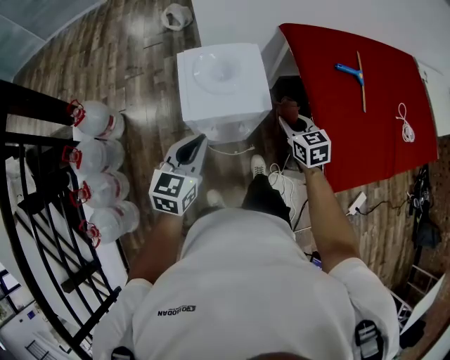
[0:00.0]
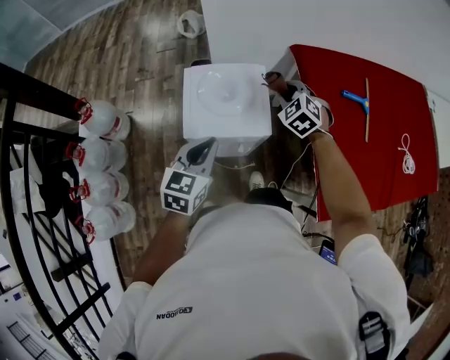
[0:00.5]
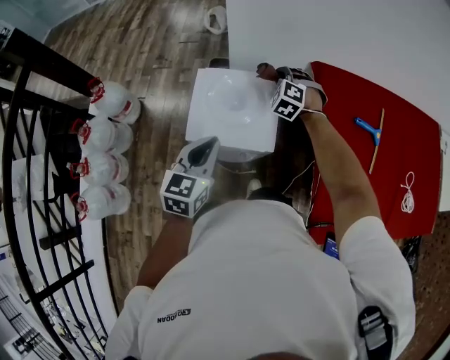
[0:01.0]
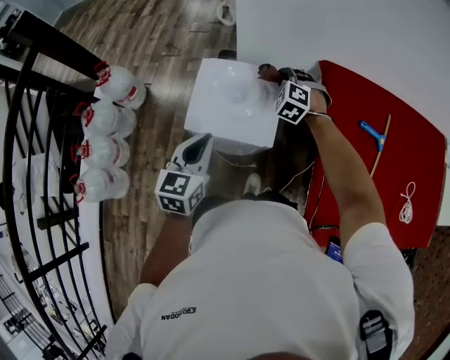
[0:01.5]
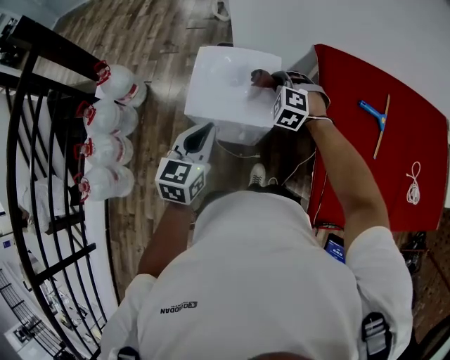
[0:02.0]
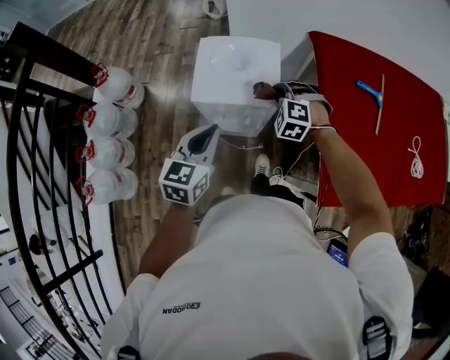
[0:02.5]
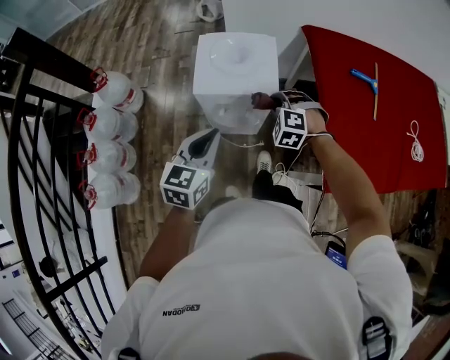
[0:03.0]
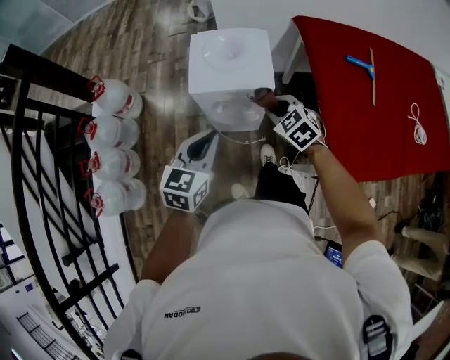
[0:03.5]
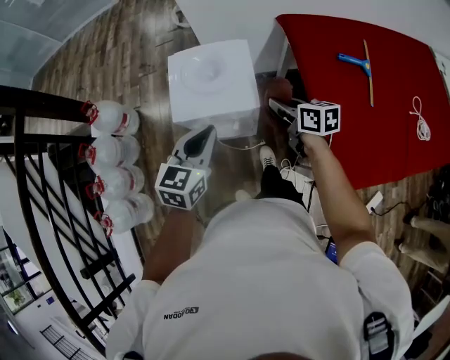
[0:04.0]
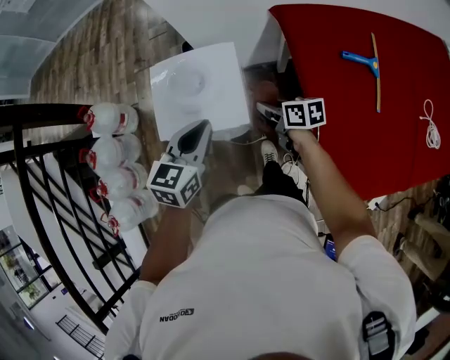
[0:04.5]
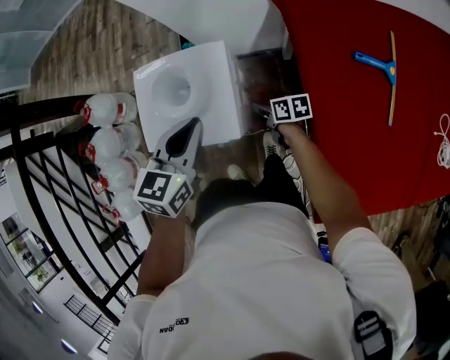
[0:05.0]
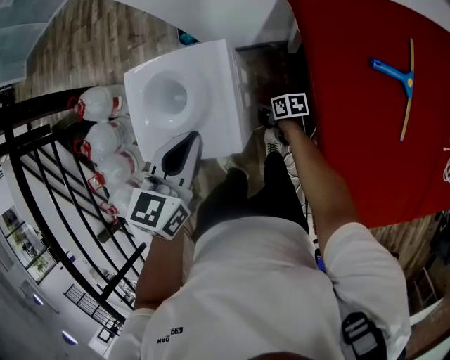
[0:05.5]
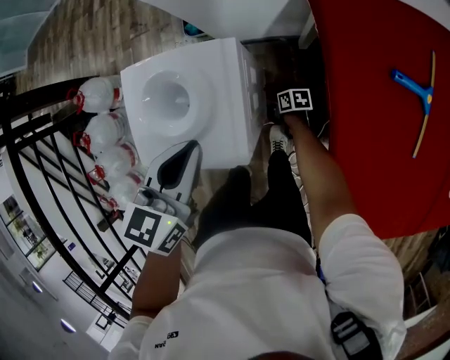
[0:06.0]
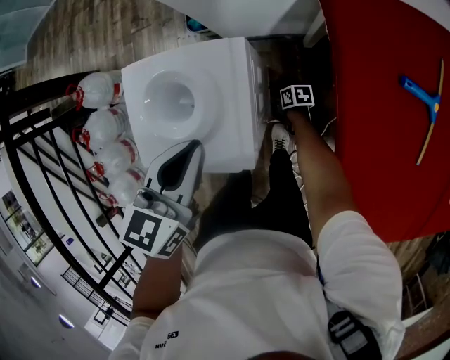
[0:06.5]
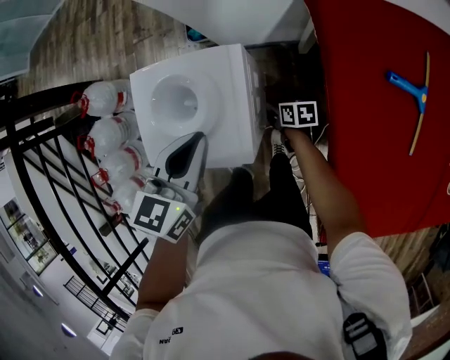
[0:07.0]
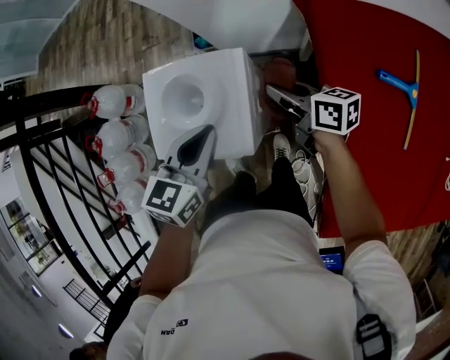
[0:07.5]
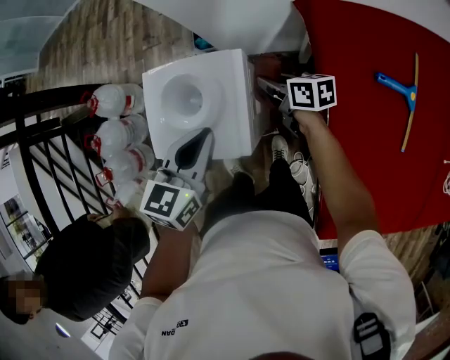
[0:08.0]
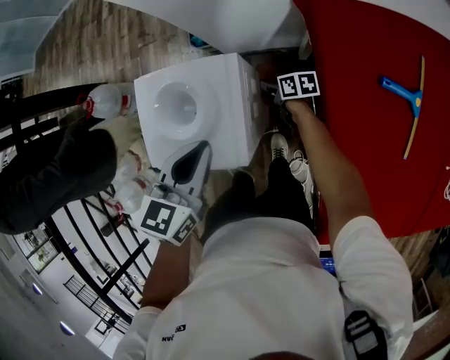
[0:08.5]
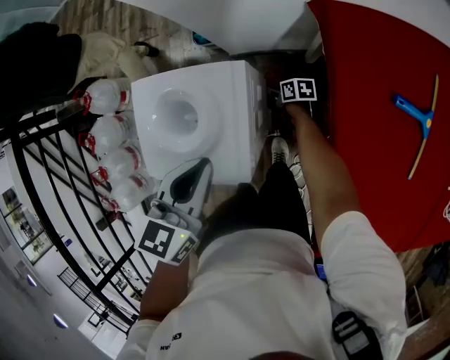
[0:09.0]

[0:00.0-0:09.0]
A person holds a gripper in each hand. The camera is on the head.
0:00.0 to 0:02.0: The left gripper ends up approximately 5 cm from where it was. Meanwhile the right gripper moves forward and to the left, roughly 15 cm, and twists roughly 70 degrees counterclockwise, seen from behind.
0:02.0 to 0:04.5: The left gripper travels to the right by approximately 5 cm, and travels backward and back again, roughly 10 cm each way; the right gripper travels downward and to the right by some 10 cm, reaches approximately 20 cm backward, then returns, and twists about 100 degrees clockwise, seen from behind.
0:04.5 to 0:07.0: The left gripper is displaced forward by roughly 5 cm; the right gripper travels downward by approximately 25 cm.
0:07.0 to 0:09.0: The right gripper heads forward, covering some 10 cm, and goes upward and returns, approximately 25 cm each way.

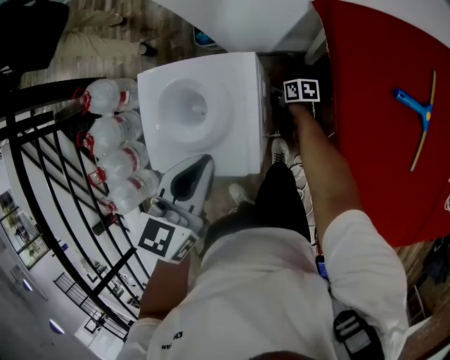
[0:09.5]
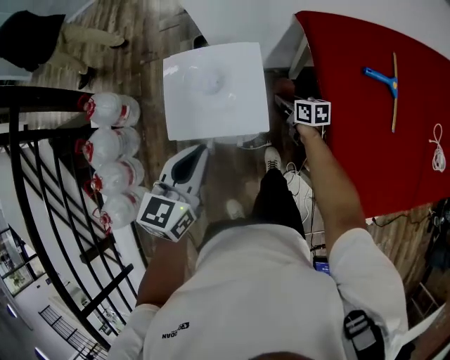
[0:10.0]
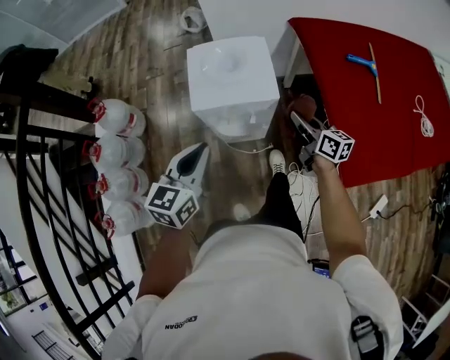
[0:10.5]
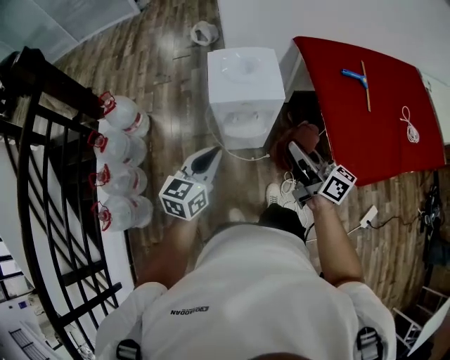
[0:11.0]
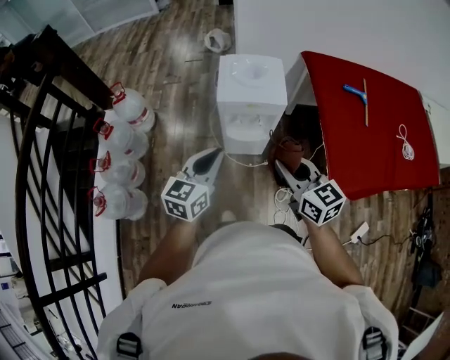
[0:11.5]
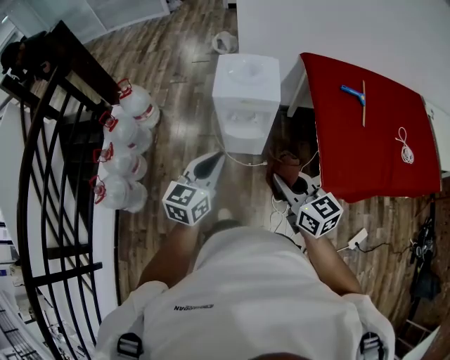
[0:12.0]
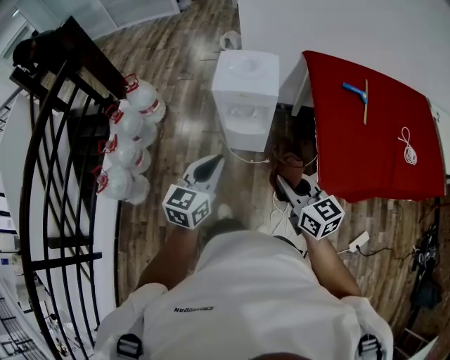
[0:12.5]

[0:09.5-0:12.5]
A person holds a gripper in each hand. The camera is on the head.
0:09.5 to 0:11.0: The left gripper travels backward and to the left by approximately 30 cm, while the right gripper shifts some 60 cm upward and backward, and tilts its fingers about 50 degrees upward.
0:11.0 to 0:12.5: The left gripper moves backward and to the right, roughly 15 cm; the right gripper is displaced backward by about 15 cm, and rotates roughly 30 degrees.

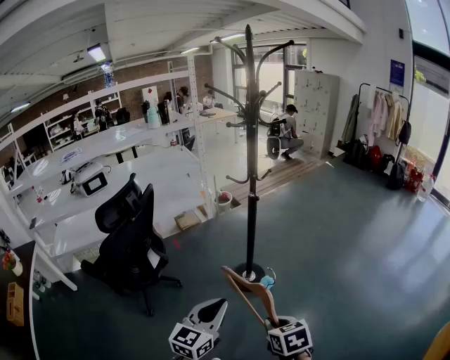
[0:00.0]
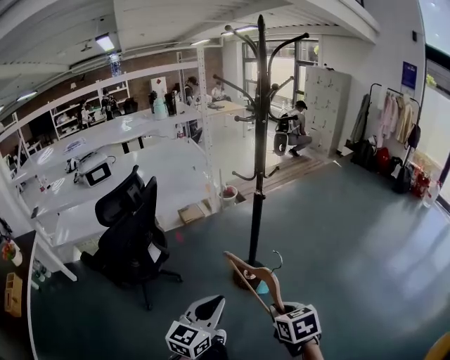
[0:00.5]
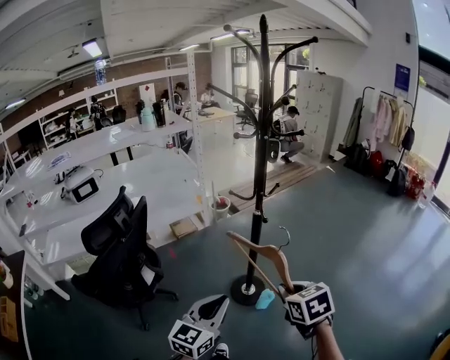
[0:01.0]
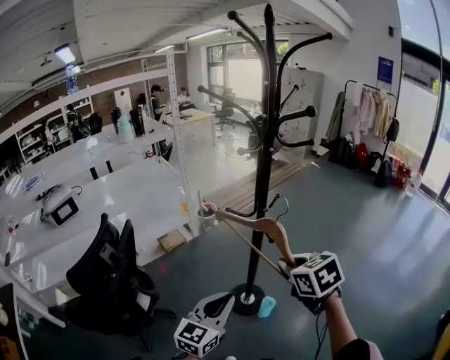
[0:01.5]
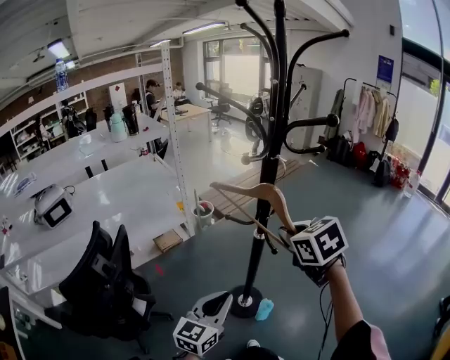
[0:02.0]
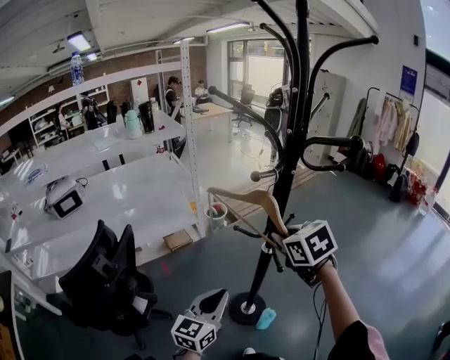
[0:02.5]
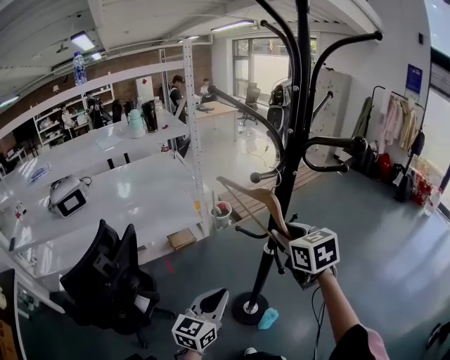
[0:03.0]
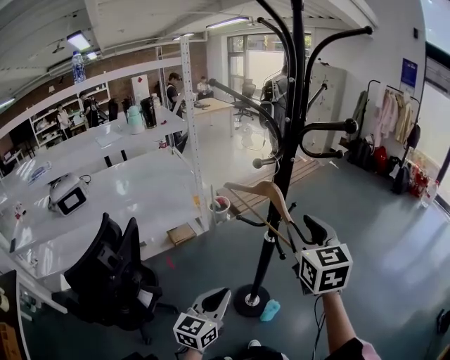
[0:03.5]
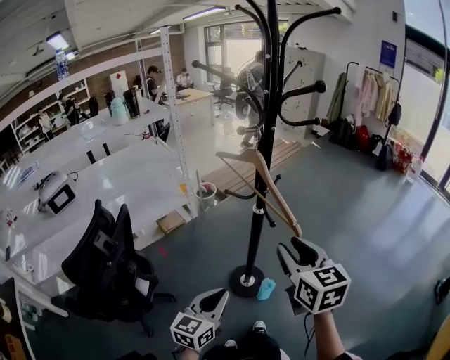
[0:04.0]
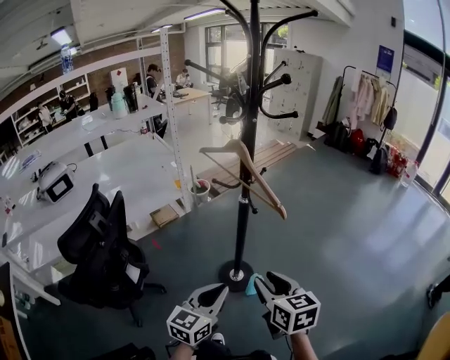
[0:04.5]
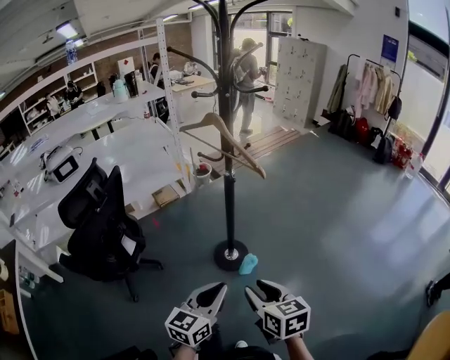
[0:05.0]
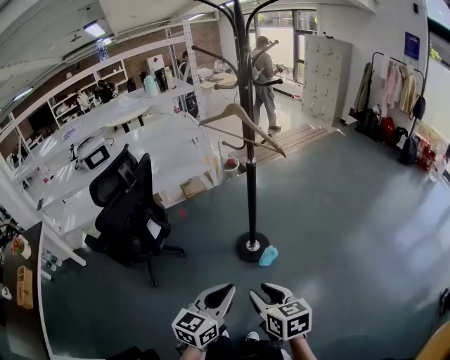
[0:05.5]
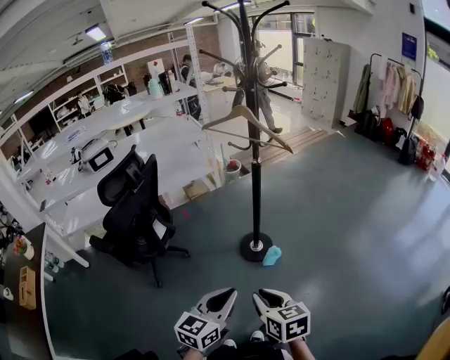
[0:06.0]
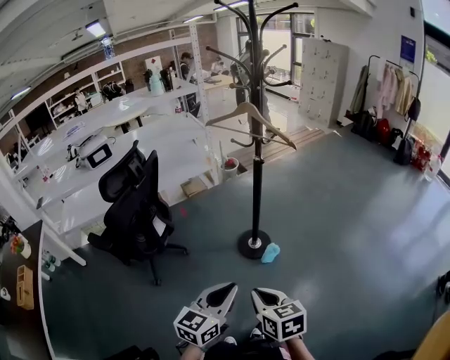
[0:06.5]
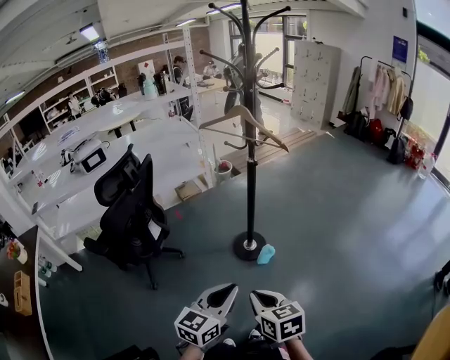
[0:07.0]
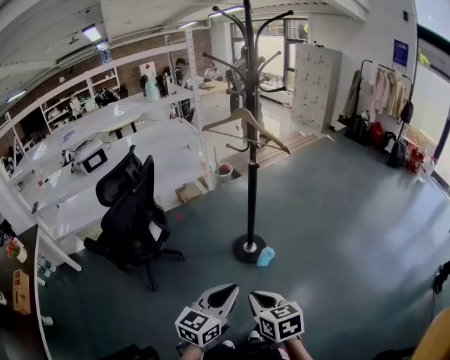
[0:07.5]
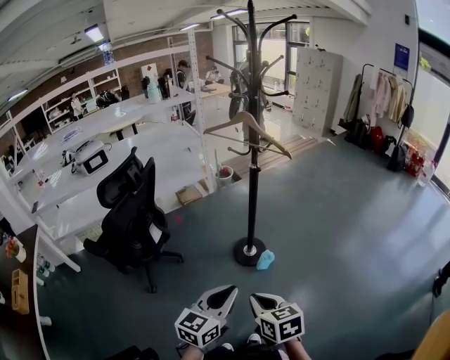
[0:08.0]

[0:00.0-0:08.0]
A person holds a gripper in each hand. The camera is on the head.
0:00.0 to 0:02.0: The left gripper moves forward, about 35 cm. Meanwhile the right gripper goes about 60 cm forward and upward.
0:02.0 to 0:04.0: The right gripper travels backward by approximately 10 cm, swivels about 30 degrees, and opens up, while the left gripper travels backward by roughly 5 cm.
0:04.0 to 0:06.0: The right gripper goes roughly 40 cm backward and downward, and changes its angle by about 30 degrees. Meanwhile the left gripper moves backward and to the right, about 35 cm.
0:06.0 to 0:08.0: The grippers stay close to where they were, moving slightly.

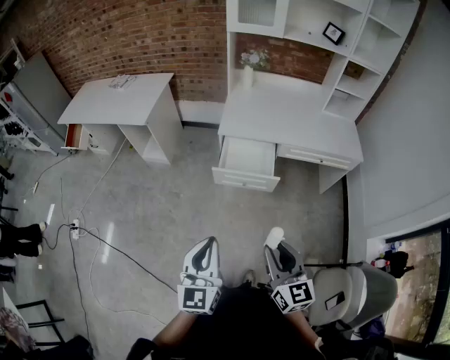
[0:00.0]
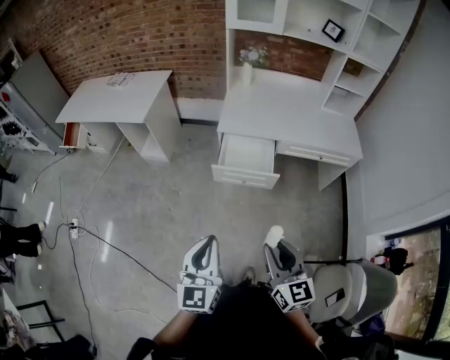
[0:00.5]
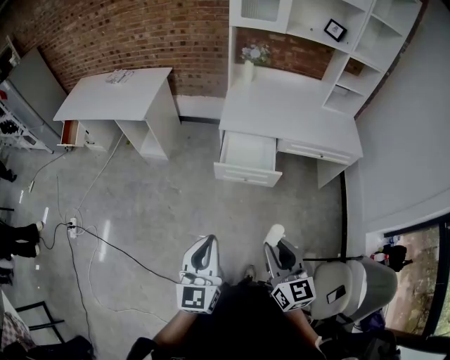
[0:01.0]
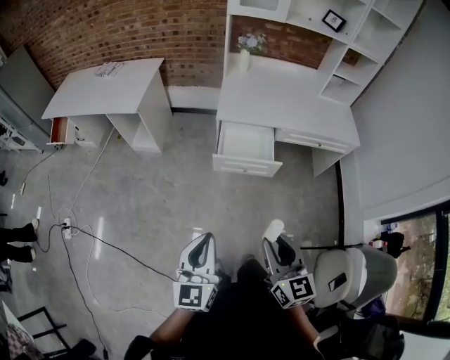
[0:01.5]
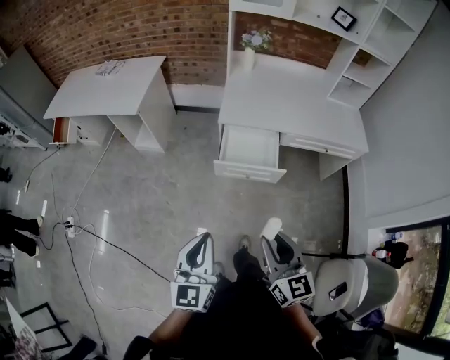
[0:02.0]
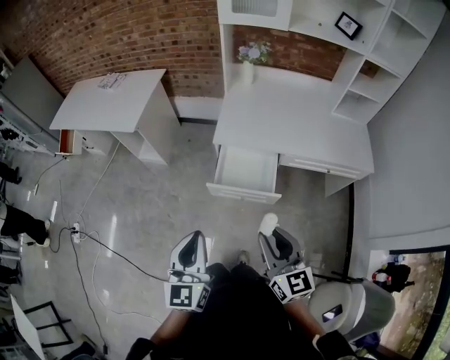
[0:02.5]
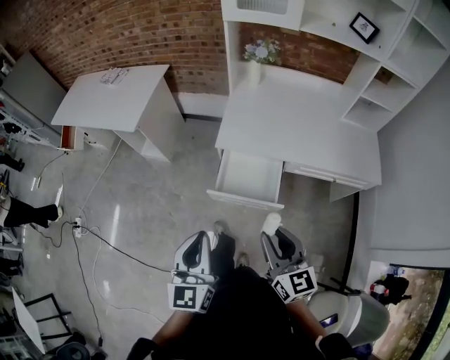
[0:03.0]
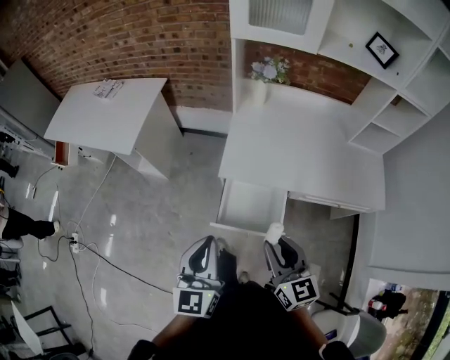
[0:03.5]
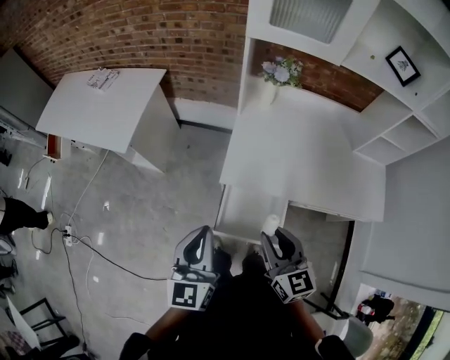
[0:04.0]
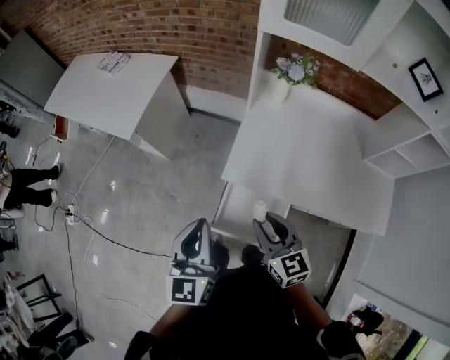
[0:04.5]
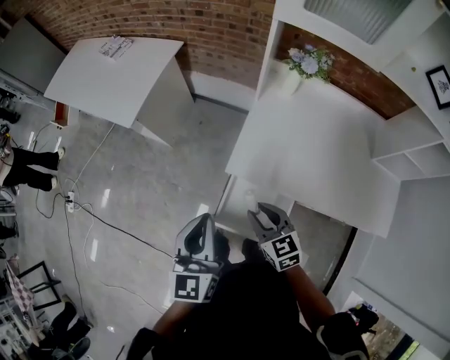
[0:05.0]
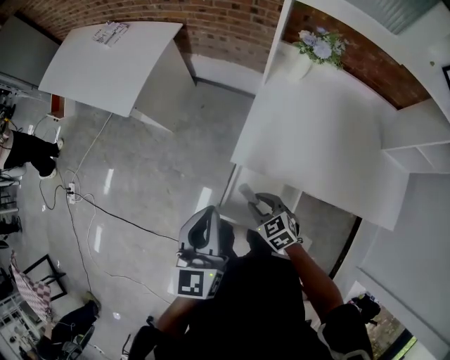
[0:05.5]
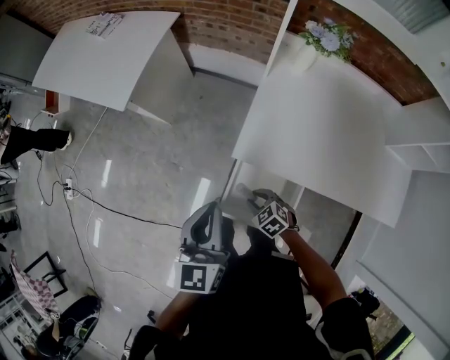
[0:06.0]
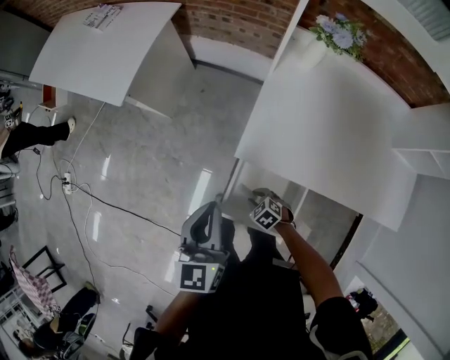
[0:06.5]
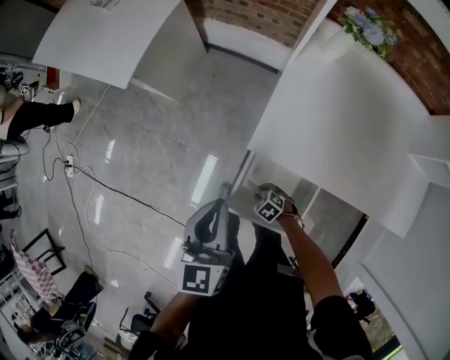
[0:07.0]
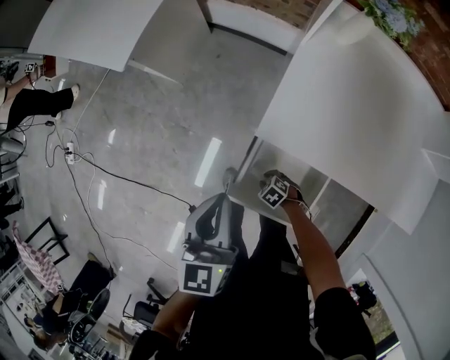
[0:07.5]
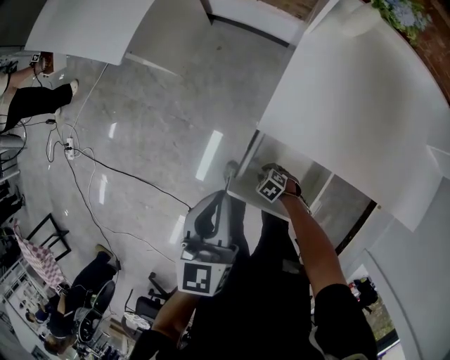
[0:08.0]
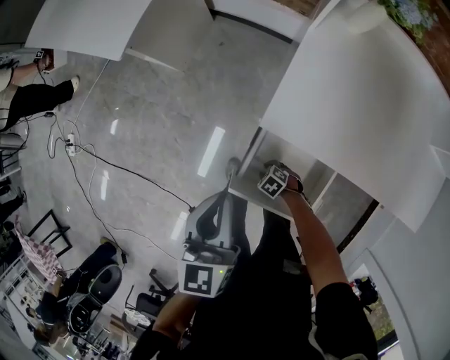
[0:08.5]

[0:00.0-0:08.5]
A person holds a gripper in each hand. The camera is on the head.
0:00.0 to 0:02.0: The grippers both shift forward and to the left by roughly 10 cm.
0:02.0 to 0:04.0: Both grippers are carried forward, about 40 cm.
0:04.0 to 0:06.5: The left gripper is displaced downward by approximately 15 cm; the right gripper is displaced downward by approximately 40 cm, and points its fingers roughly 50 degrees further downward.
0:06.5 to 0:08.5: The left gripper travels downward by about 10 cm. Meanwhile the right gripper is displaced downward by about 15 cm.
